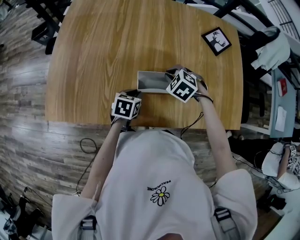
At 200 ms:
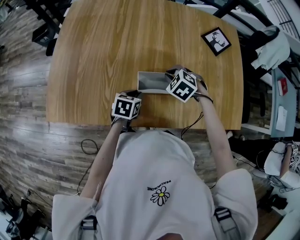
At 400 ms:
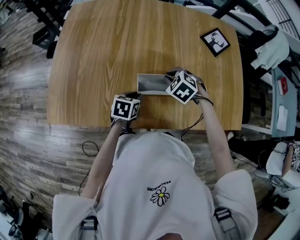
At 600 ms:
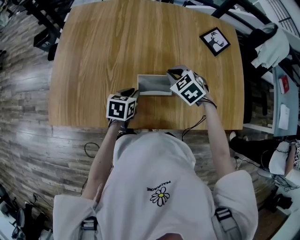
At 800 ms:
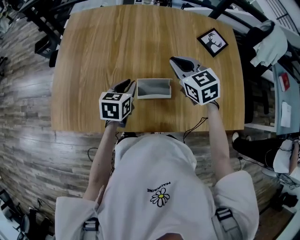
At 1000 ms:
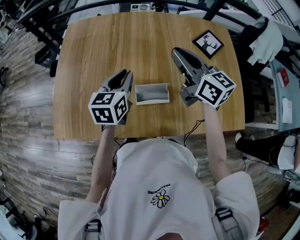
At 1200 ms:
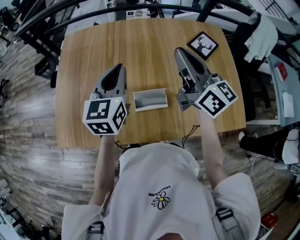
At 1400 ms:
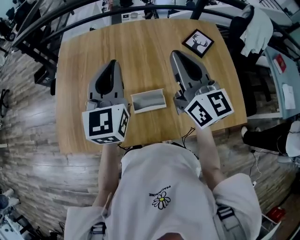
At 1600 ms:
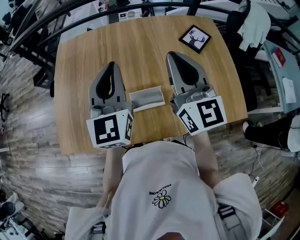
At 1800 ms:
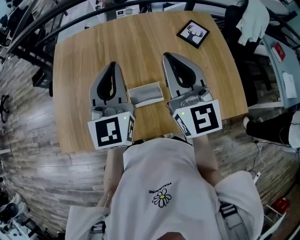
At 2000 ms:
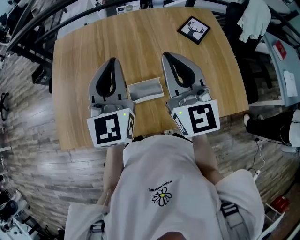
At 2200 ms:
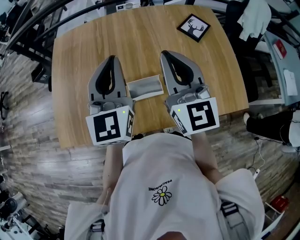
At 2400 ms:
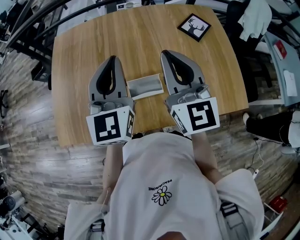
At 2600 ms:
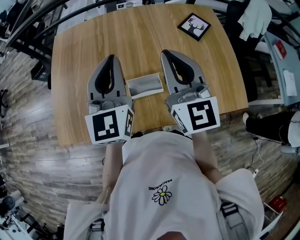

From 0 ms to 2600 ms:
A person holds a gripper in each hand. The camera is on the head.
From 0 ms to 1200 ms: Both grippers travel together upward, some 30 cm. The right gripper angles its fingers upward, by roughly 70 degrees; the left gripper points its fingers roughly 40 degrees further upward.
From 1200 ms to 2600 ms: The right gripper travels backward by about 5 cm, and swivels about 30 degrees; the left gripper moves upward, approximately 5 cm.

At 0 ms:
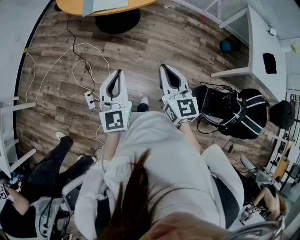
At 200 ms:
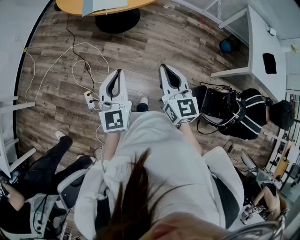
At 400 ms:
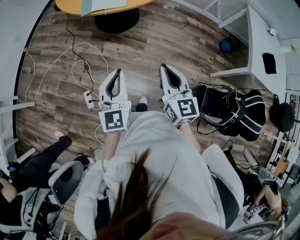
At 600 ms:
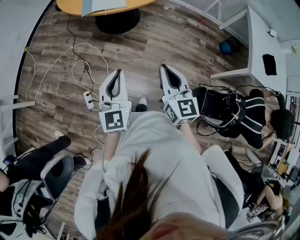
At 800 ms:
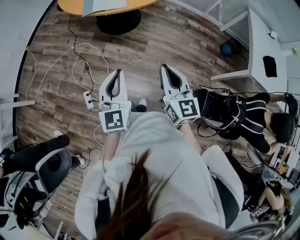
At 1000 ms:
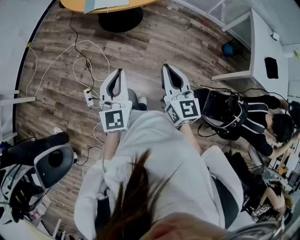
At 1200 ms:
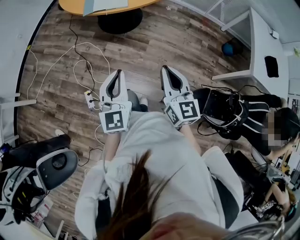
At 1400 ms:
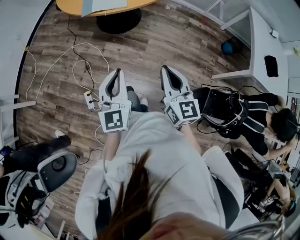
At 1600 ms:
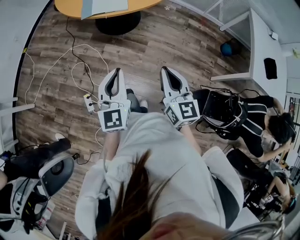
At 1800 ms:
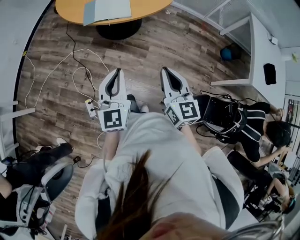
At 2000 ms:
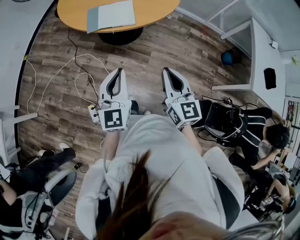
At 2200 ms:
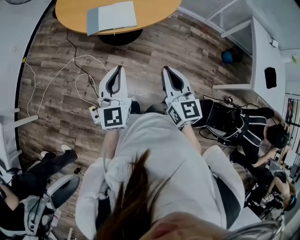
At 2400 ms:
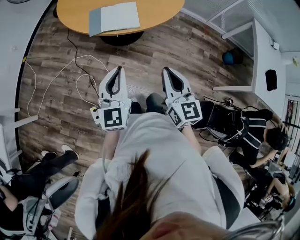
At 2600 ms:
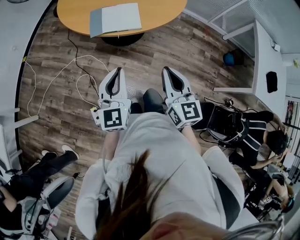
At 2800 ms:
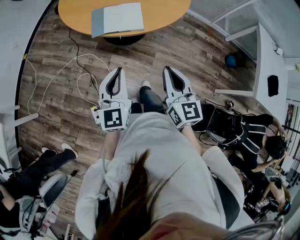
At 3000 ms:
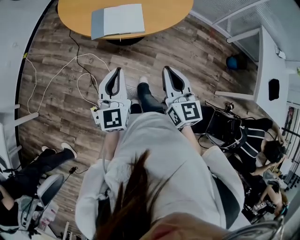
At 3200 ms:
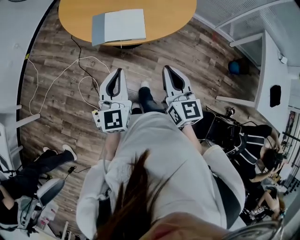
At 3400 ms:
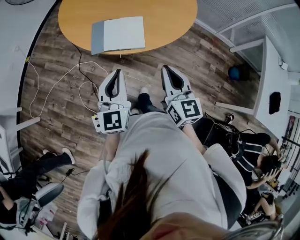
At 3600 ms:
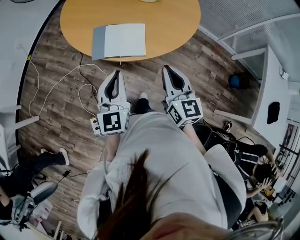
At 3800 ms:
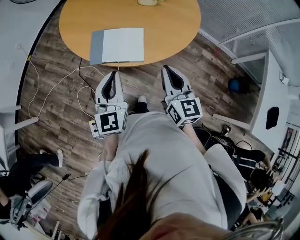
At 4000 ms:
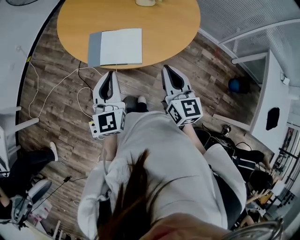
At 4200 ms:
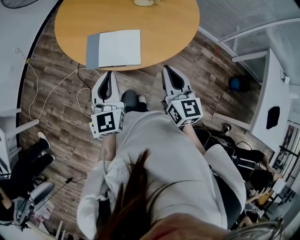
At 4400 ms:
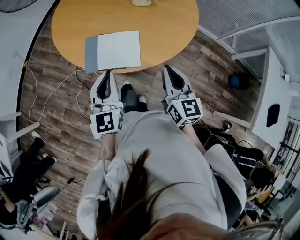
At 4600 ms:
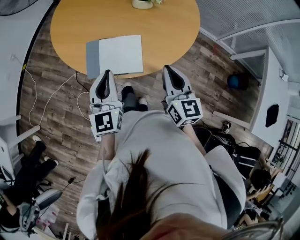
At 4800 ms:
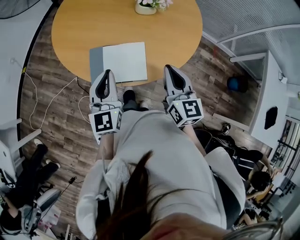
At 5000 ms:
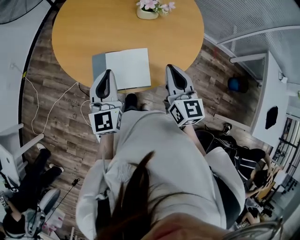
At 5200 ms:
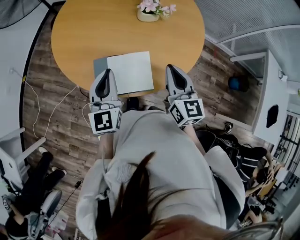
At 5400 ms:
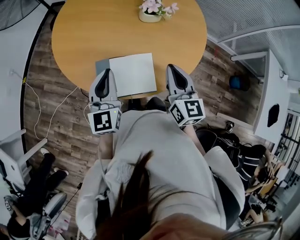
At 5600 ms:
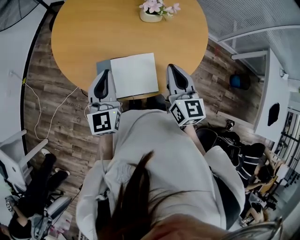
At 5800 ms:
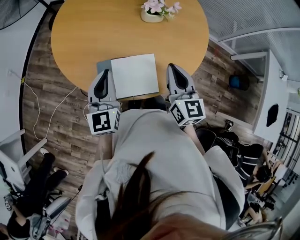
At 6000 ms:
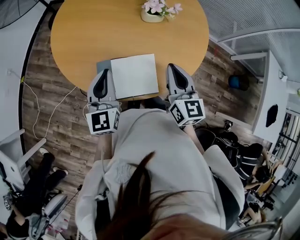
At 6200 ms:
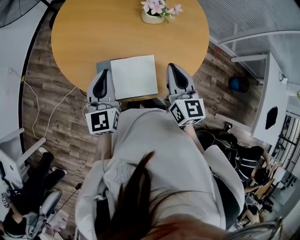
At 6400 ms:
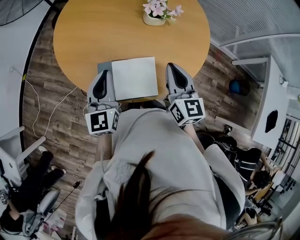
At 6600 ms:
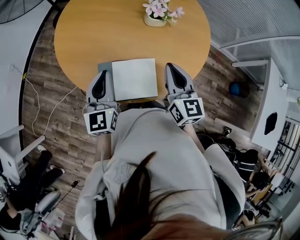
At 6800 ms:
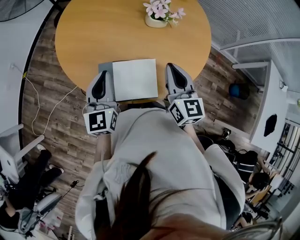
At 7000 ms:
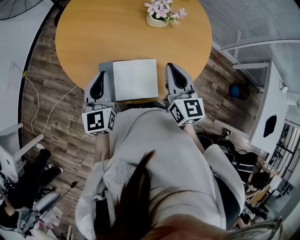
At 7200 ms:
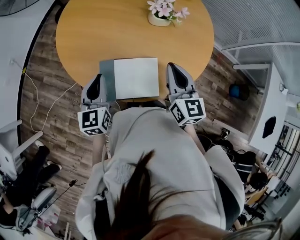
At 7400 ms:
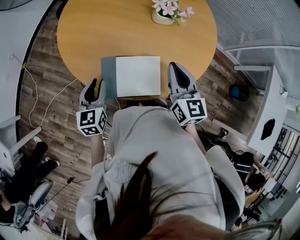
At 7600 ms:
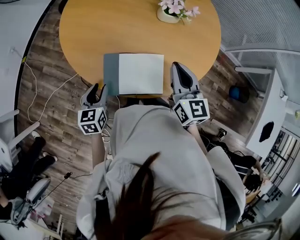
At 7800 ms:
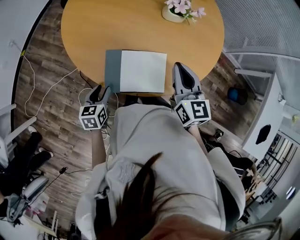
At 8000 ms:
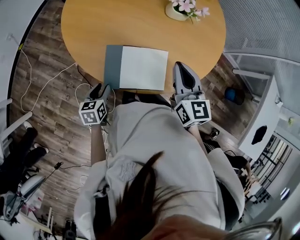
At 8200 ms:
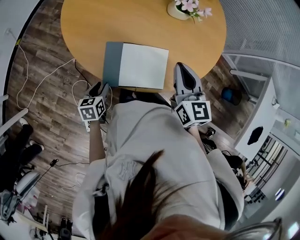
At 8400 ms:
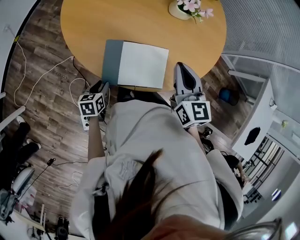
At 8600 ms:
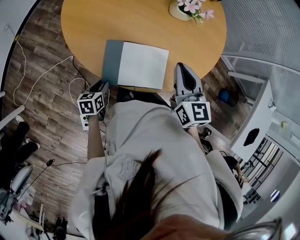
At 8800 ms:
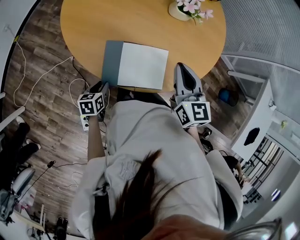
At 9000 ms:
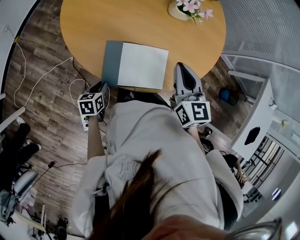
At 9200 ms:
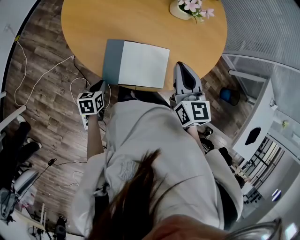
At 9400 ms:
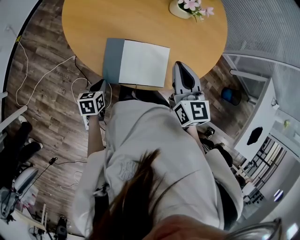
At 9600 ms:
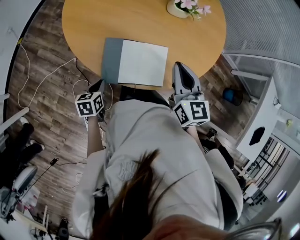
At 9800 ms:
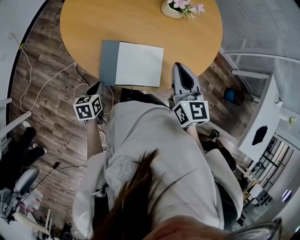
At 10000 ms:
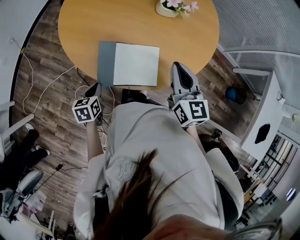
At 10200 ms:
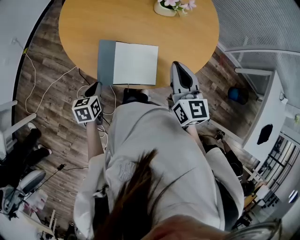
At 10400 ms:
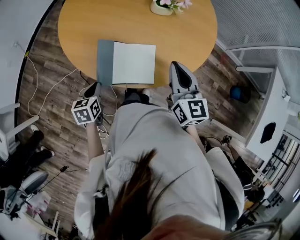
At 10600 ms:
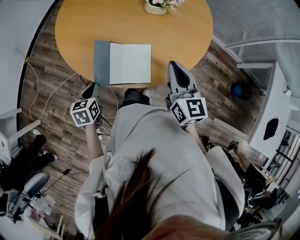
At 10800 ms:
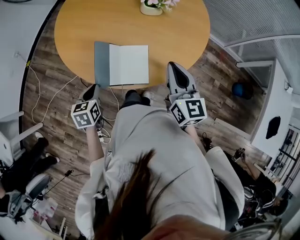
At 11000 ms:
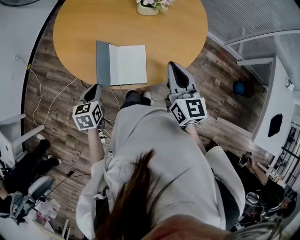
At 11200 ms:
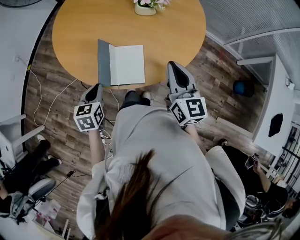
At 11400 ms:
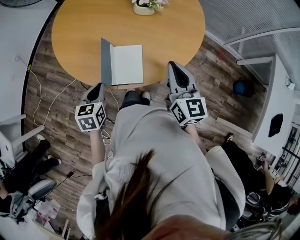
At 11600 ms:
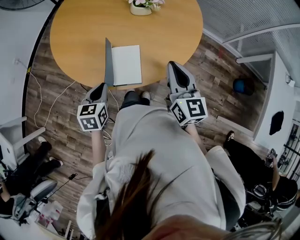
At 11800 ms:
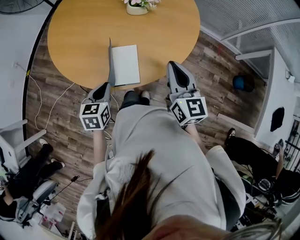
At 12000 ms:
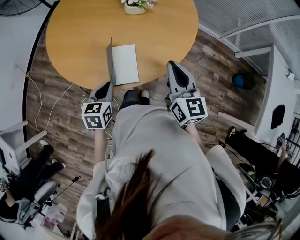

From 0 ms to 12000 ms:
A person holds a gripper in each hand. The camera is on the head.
From 0 ms to 1600 ms: The grippers move only a little.
From 1600 ms to 3000 ms: The grippers both shift forward by approximately 20 cm.
From 3000 ms to 4400 ms: The grippers both shift forward by some 20 cm.
From 4400 ms to 6000 ms: The grippers both shift forward and to the left by about 20 cm.
From 6000 ms to 7600 ms: The left gripper is displaced downward, to the left and backward by some 15 cm, changes its angle by about 30 degrees, and opens up.
From 7600 ms to 9000 ms: The left gripper travels downward by about 15 cm, and rotates some 30 degrees.
From 9000 ms to 10400 ms: The left gripper travels upward by some 10 cm; the right gripper travels to the right by approximately 10 cm.
From 10400 ms to 12000 ms: The left gripper moves to the right, approximately 15 cm. The right gripper shifts approximately 10 cm to the right.

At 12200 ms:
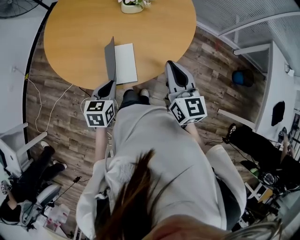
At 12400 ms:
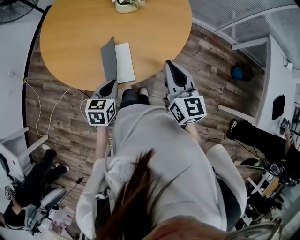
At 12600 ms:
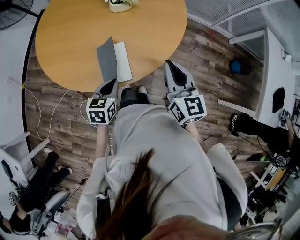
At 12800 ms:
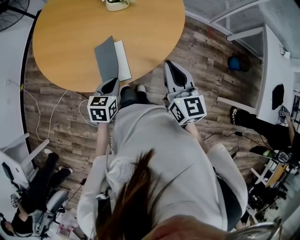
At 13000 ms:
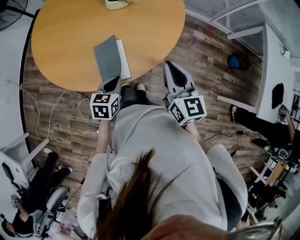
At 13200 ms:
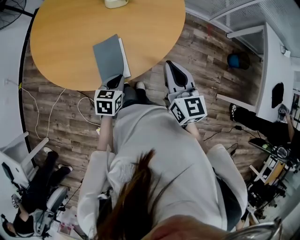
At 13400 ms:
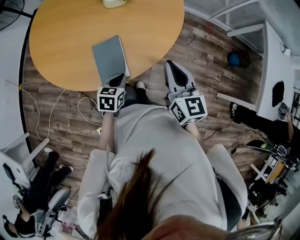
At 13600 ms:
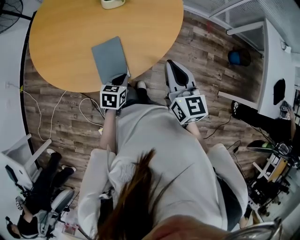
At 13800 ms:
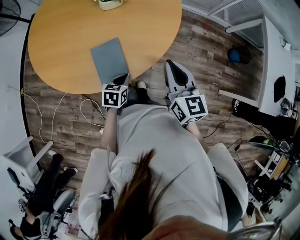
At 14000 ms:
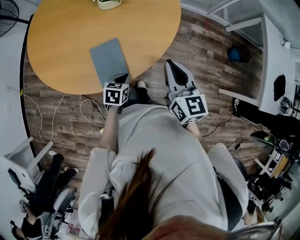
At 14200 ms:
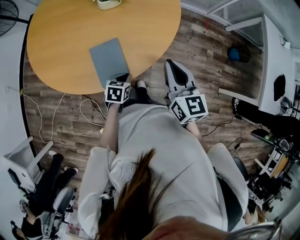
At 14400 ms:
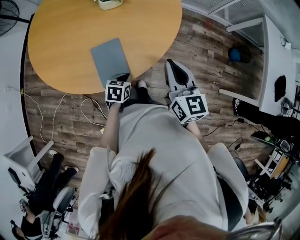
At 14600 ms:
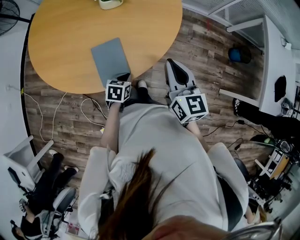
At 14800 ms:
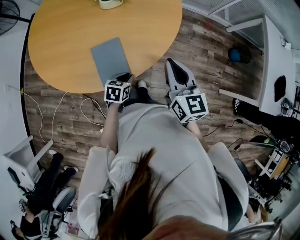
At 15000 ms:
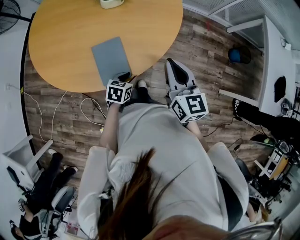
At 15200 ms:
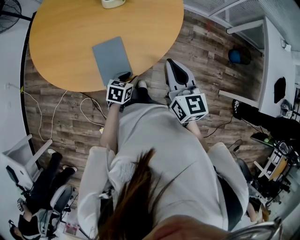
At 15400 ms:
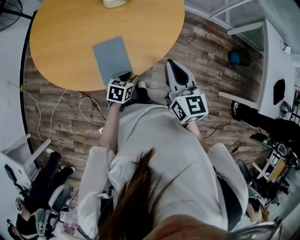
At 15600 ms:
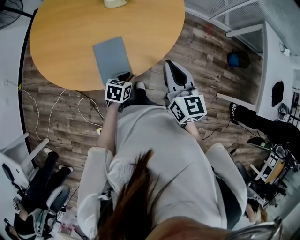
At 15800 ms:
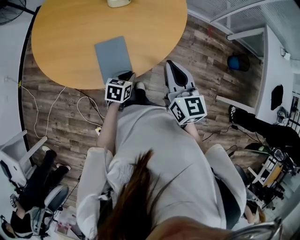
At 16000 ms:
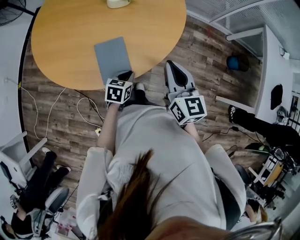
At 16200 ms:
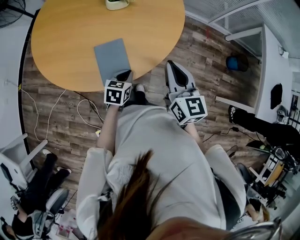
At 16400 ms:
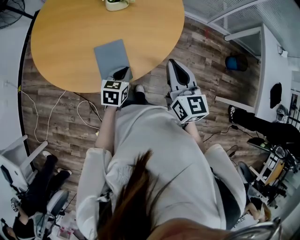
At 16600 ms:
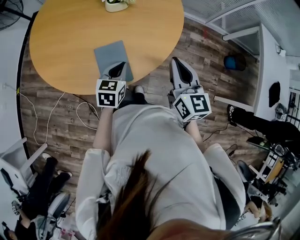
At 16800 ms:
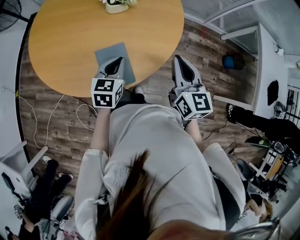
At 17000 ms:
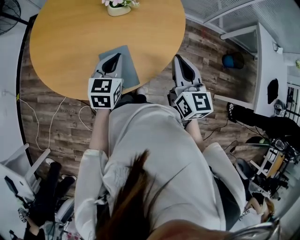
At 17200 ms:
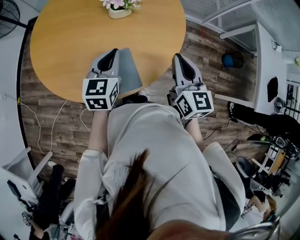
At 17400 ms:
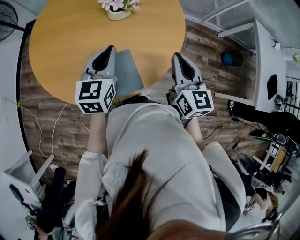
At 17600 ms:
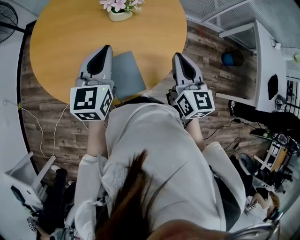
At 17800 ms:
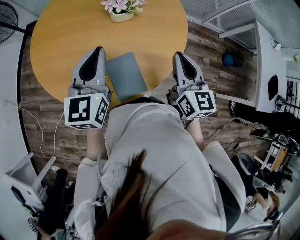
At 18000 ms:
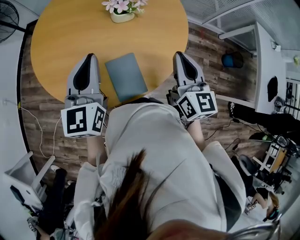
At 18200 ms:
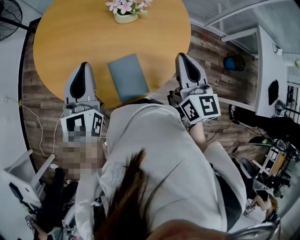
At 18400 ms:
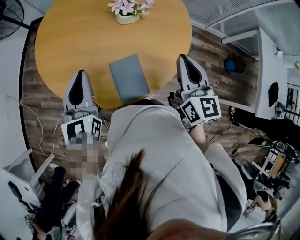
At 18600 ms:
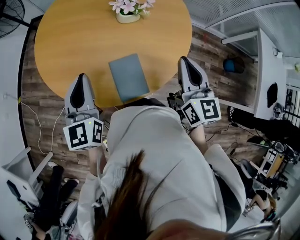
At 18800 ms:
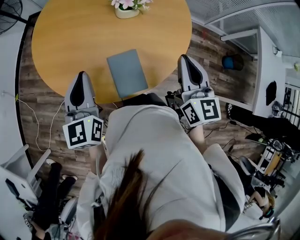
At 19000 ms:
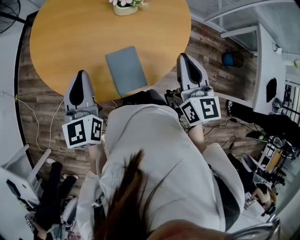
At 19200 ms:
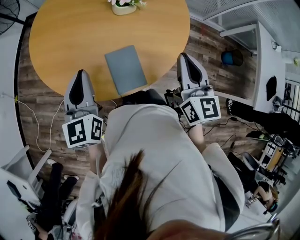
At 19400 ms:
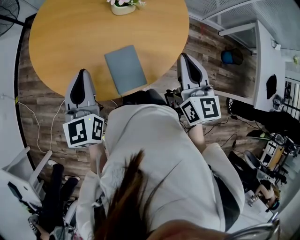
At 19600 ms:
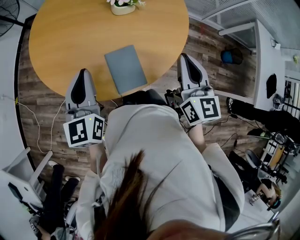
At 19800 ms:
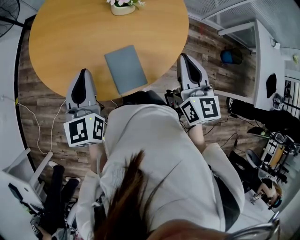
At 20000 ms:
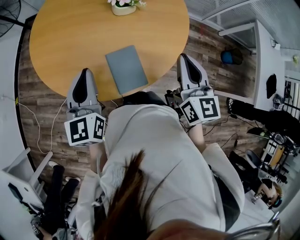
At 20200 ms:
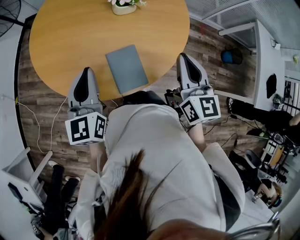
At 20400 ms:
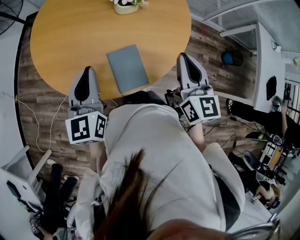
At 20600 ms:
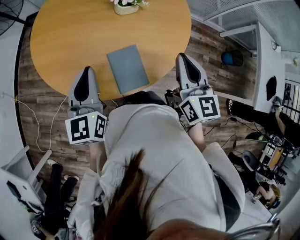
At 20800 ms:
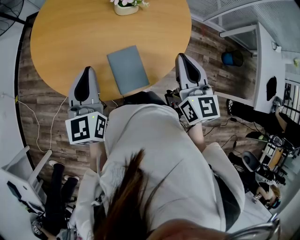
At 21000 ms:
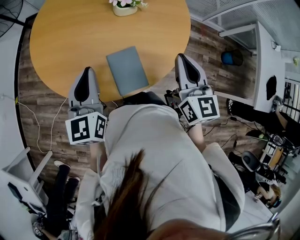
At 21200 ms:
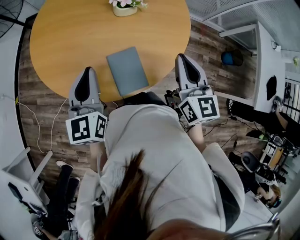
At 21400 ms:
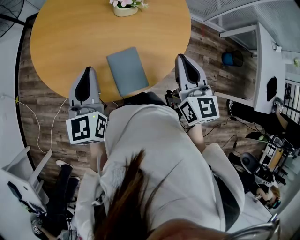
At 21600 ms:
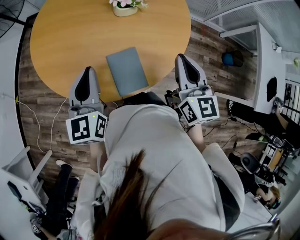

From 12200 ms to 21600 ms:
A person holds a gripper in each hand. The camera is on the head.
From 12200 ms to 13800 ms: The left gripper moves downward and to the right, about 15 cm.
From 13800 ms to 15400 ms: The left gripper opens up.
From 15400 ms to 17000 ms: The right gripper changes place by roughly 5 cm; the left gripper is displaced upward, to the left and forward by about 25 cm, swivels approximately 30 degrees, and closes.
From 17000 ms to 18400 ms: The left gripper goes roughly 20 cm to the left and upward, and turns by some 30 degrees, while the right gripper travels to the left by roughly 5 cm.
From 18400 ms to 21600 ms: The grippers make only small movements.
